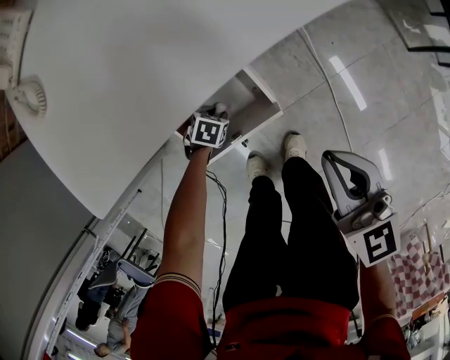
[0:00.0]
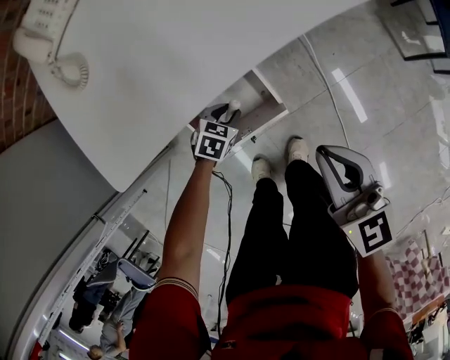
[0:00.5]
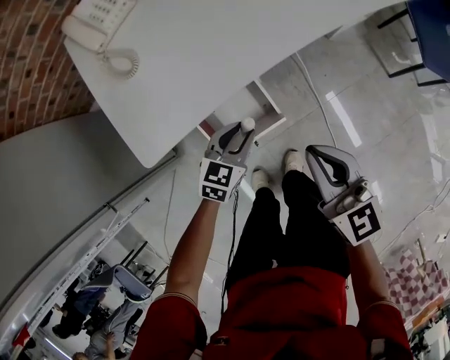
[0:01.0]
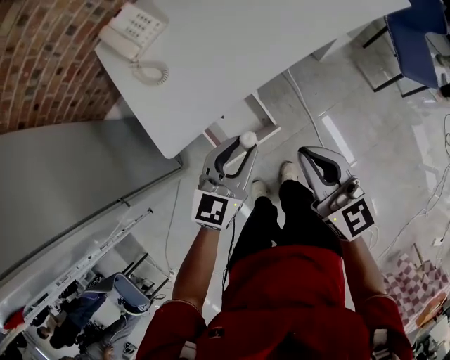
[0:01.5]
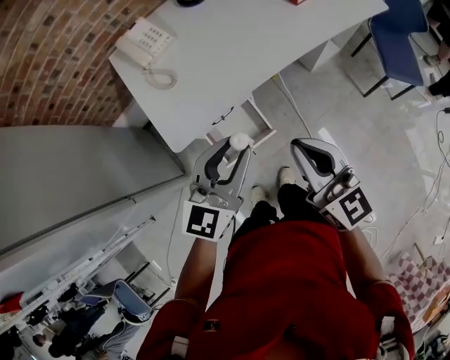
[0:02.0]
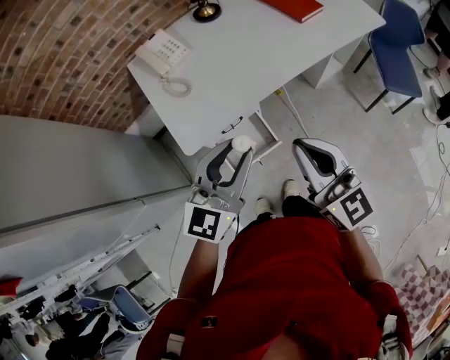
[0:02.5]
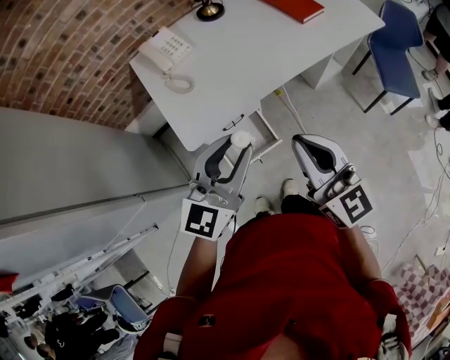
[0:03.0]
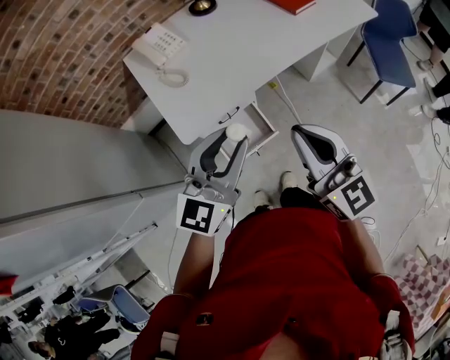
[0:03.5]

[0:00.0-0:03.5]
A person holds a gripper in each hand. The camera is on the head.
0:00.0 to 0:02.0: The left gripper travels upward by roughly 70 cm, and points its fingers some 70 degrees further upward. Meanwhile the right gripper goes some 35 cm upward, and turns by about 20 degrees.
0:02.0 to 0:03.5: Both grippers travel together upward, approximately 5 cm.

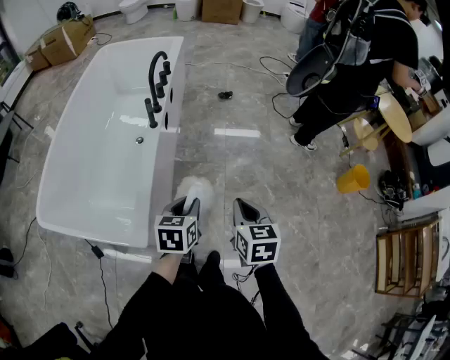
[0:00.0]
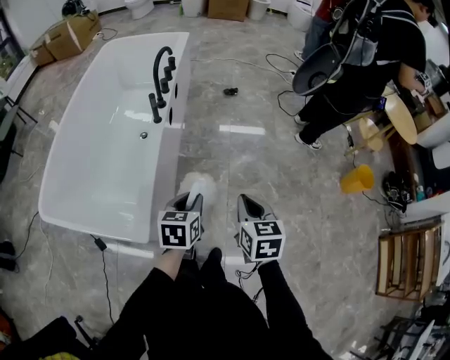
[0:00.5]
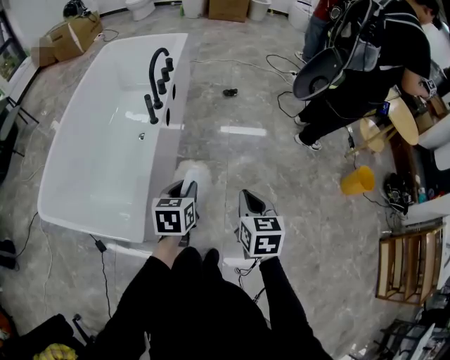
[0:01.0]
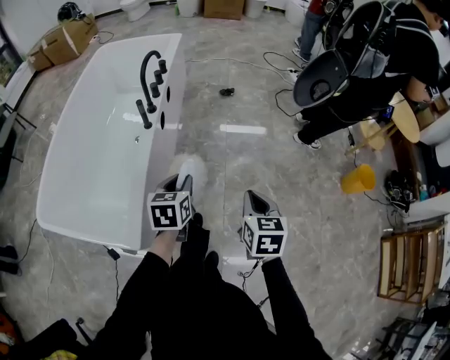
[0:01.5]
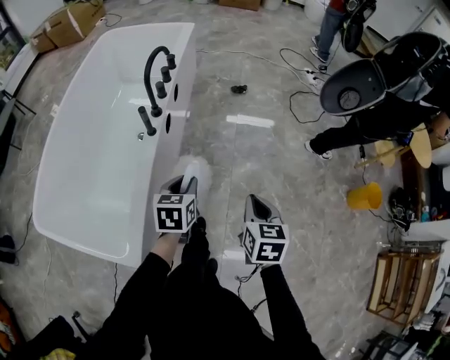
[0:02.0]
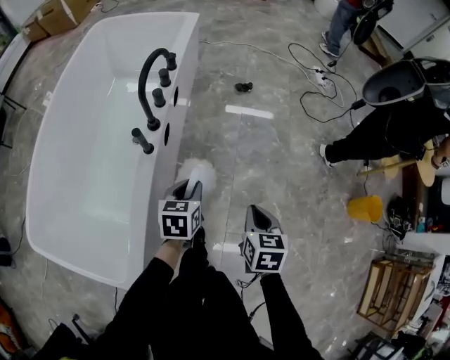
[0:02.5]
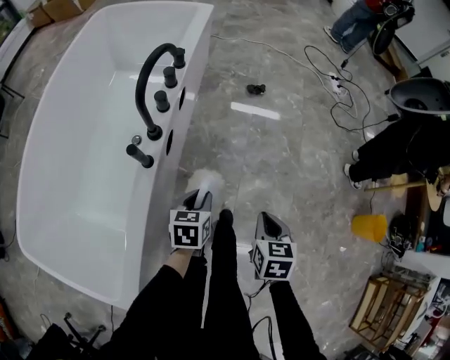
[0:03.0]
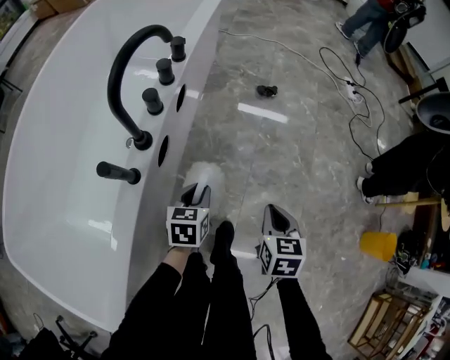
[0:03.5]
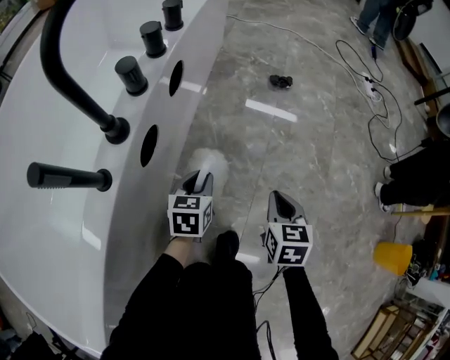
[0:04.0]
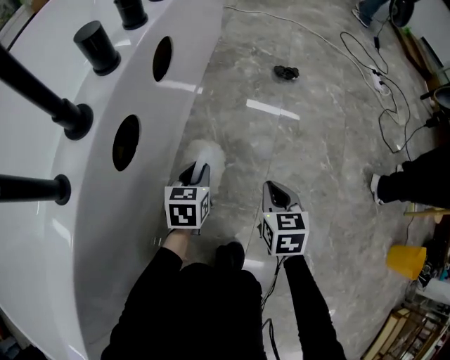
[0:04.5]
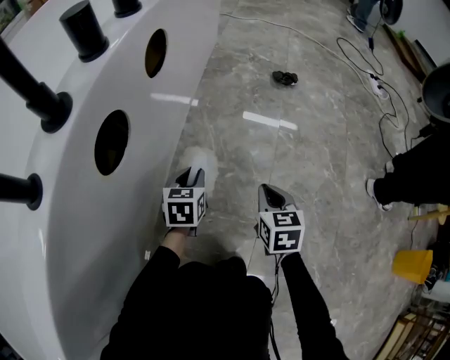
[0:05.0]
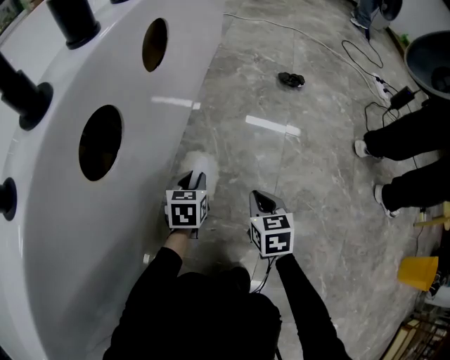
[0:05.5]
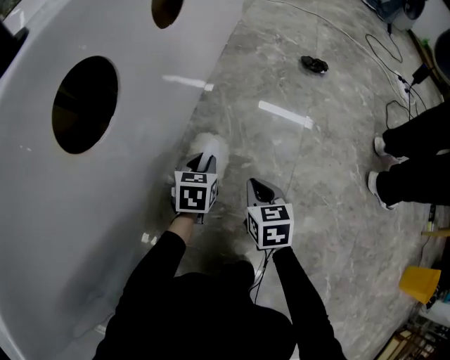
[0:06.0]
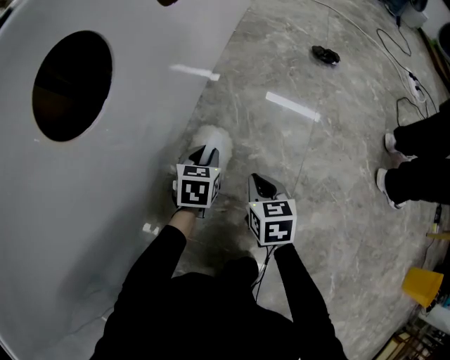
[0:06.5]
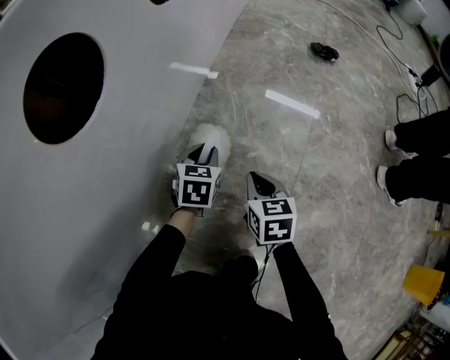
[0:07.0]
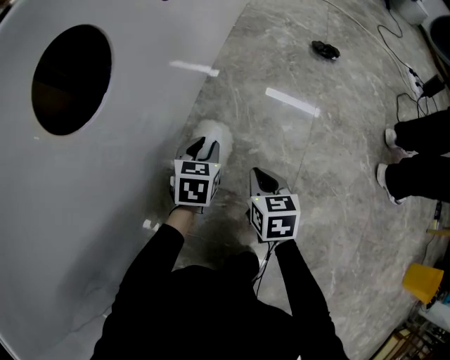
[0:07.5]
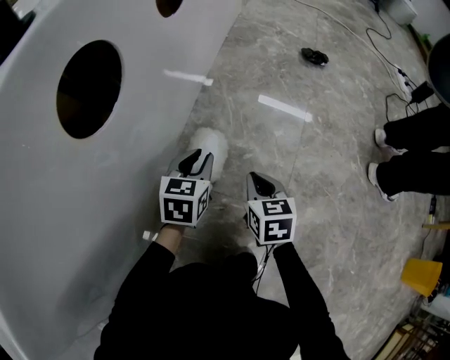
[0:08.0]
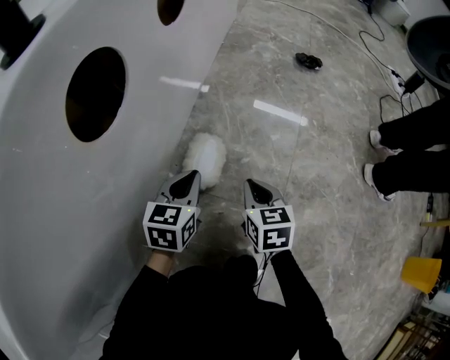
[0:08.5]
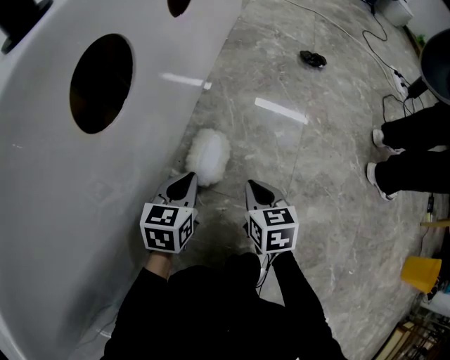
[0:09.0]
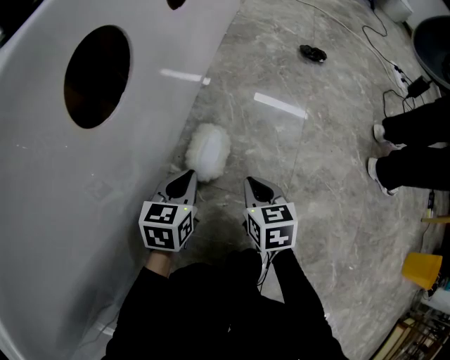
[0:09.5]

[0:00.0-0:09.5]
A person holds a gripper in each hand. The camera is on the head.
0:00.0 to 0:02.0: Both grippers travel together forward, approximately 15 cm.
0:02.0 to 0:04.0: Both grippers travel together downward and forward, some 50 cm.
0:04.0 to 0:05.5: Both grippers move downward, some 25 cm.
0:05.5 to 0:07.5: The right gripper heads downward, covering approximately 5 cm.
0:07.5 to 0:09.5: The left gripper moves backward and upward, roughly 10 cm, and closes up.

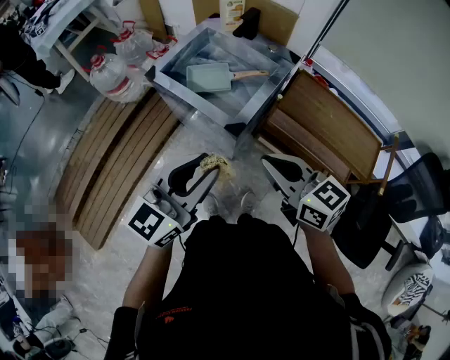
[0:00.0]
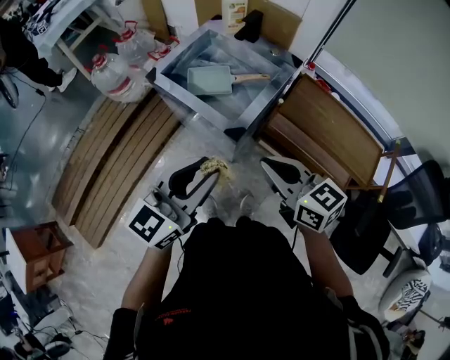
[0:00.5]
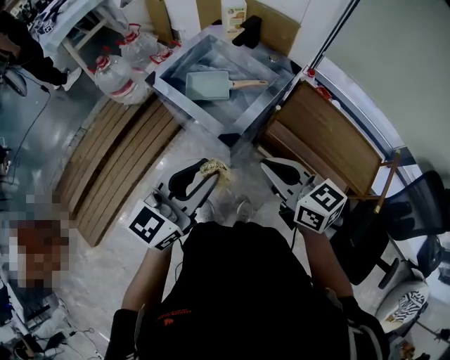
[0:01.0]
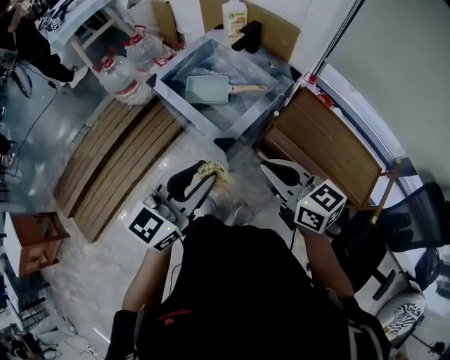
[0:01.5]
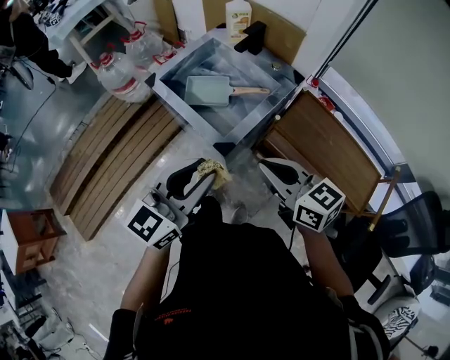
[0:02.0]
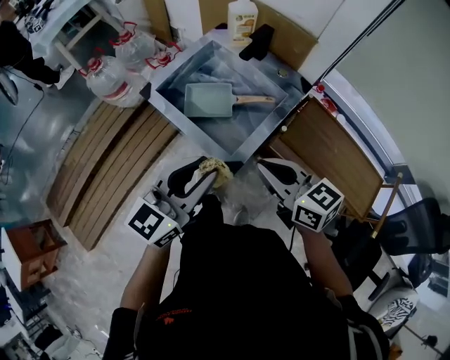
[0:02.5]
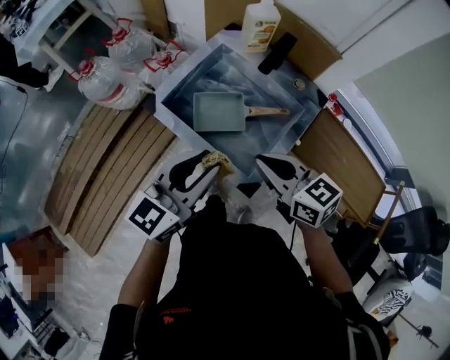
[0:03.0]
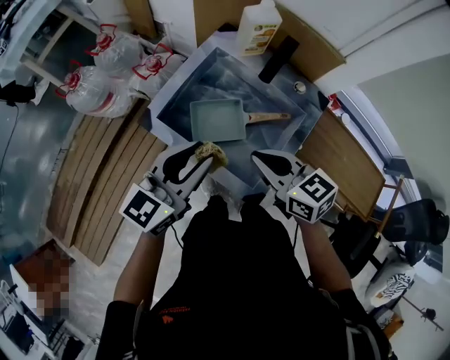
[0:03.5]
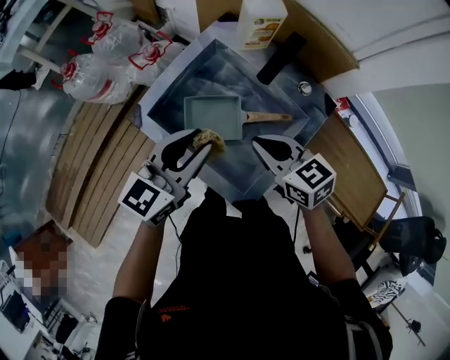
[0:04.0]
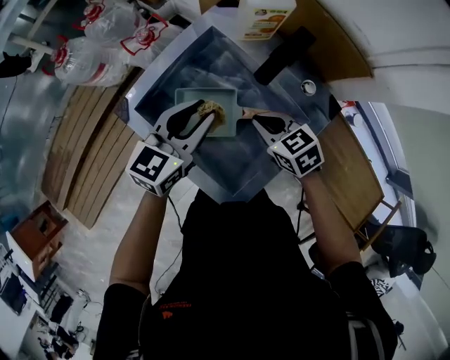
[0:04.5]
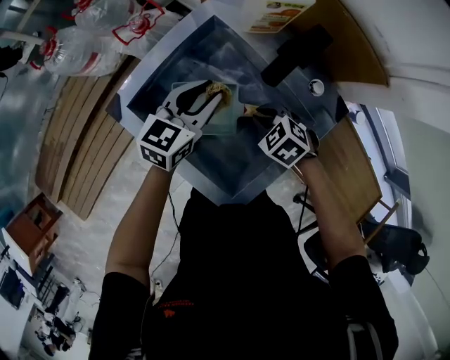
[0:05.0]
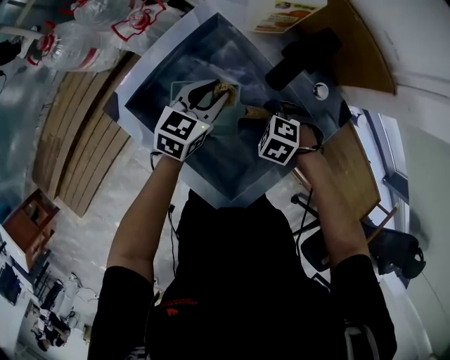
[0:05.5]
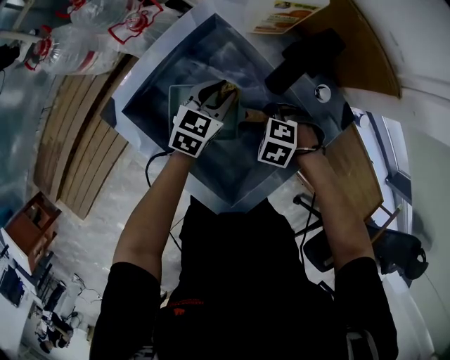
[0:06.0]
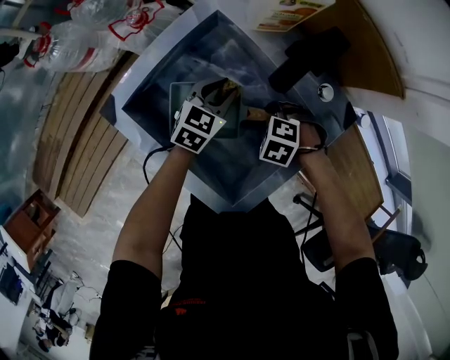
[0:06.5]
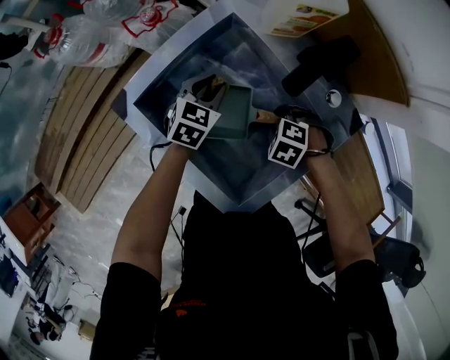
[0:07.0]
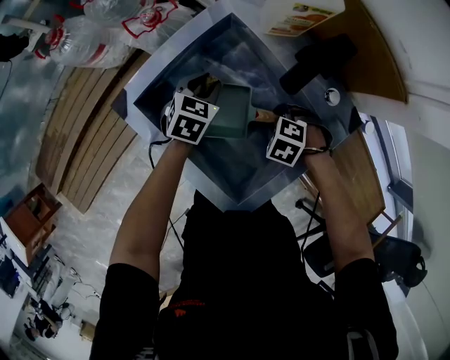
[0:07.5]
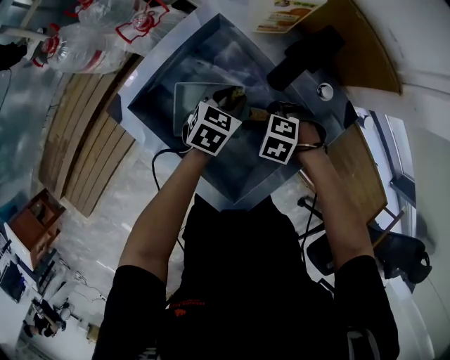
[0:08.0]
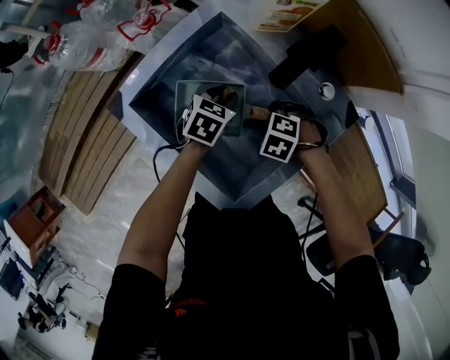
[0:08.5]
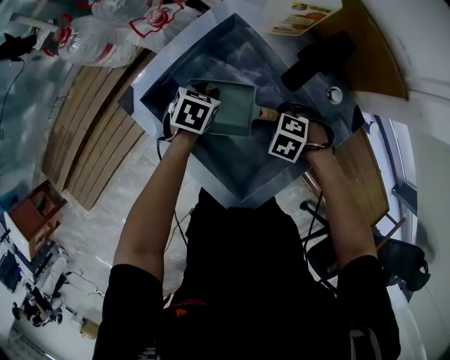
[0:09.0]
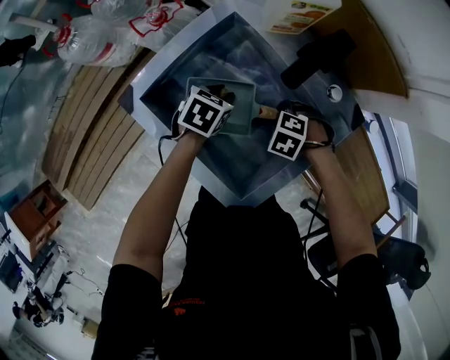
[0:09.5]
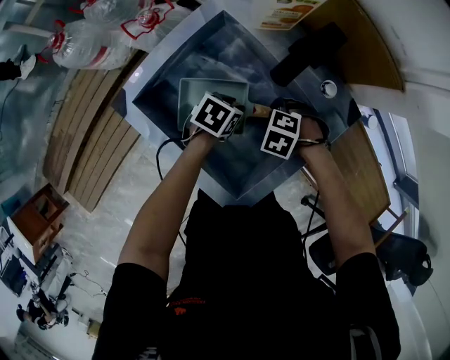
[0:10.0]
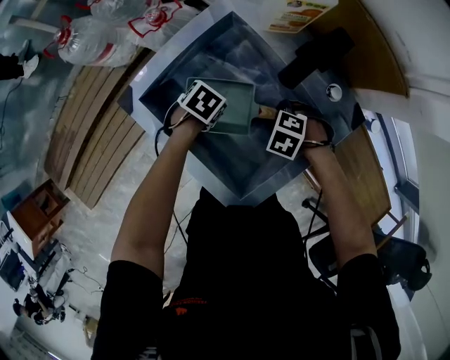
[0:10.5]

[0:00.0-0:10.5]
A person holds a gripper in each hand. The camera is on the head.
0:00.0 to 0:02.0: The left gripper travels to the right by approximately 5 cm. The right gripper heads forward and to the right, covering some 10 cm.
0:02.0 to 0:04.0: The grippers both shift forward by about 30 cm.
0:04.0 to 0:06.5: The grippers both shift downward by about 25 cm. The left gripper turns by approximately 20 degrees, while the right gripper tilts its fingers about 50 degrees downward, and opens its fingers.
0:08.5 to 0:10.5: The left gripper shifts by some 10 cm, and changes its angle by approximately 20 degrees.

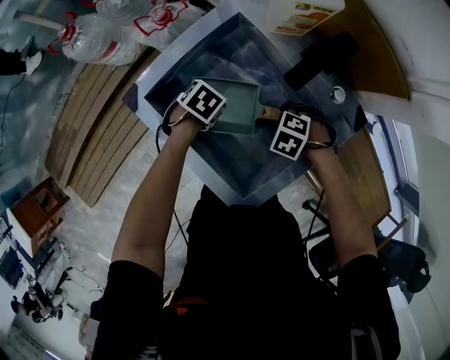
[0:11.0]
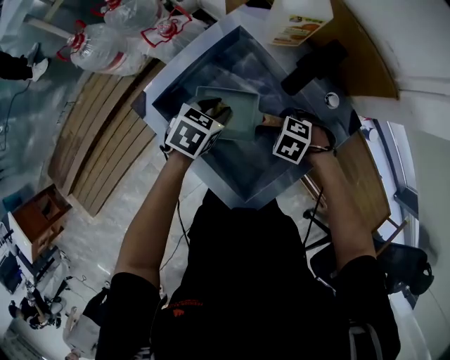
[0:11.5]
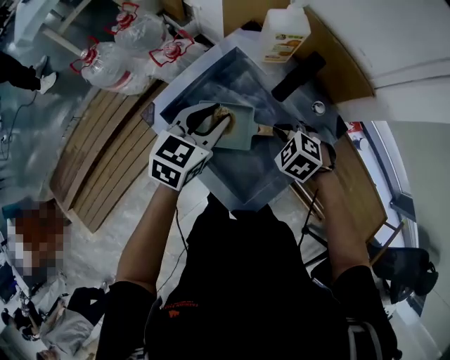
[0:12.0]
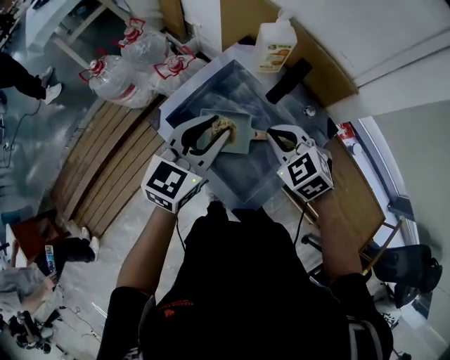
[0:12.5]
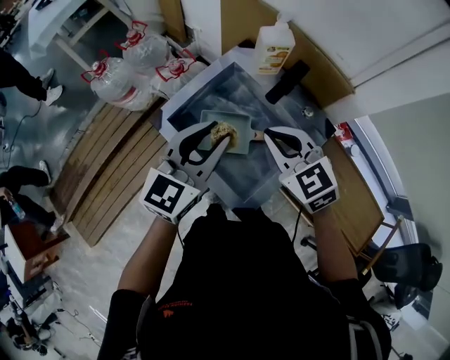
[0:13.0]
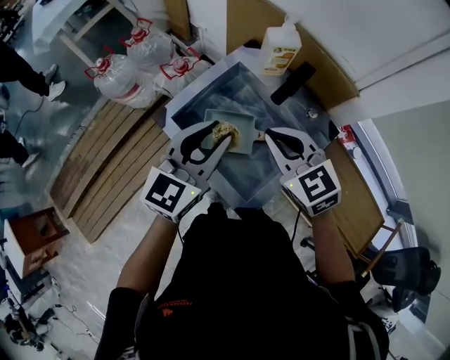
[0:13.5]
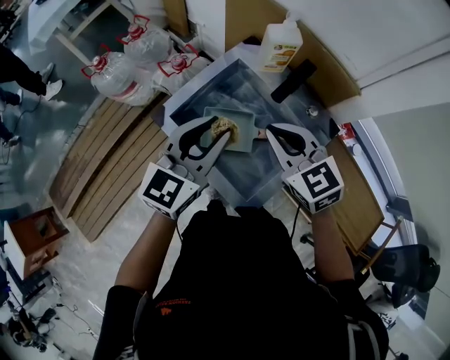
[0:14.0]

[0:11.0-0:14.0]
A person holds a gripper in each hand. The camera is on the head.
0:11.0 to 0:12.5: Both grippers move upward, about 30 cm. The left gripper points its fingers roughly 60 degrees further upward; the right gripper tilts its fingers about 40 degrees upward, and closes up.
0:12.5 to 0:14.0: The right gripper shifts approximately 5 cm upward, and rotates roughly 20 degrees.
